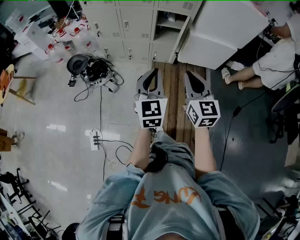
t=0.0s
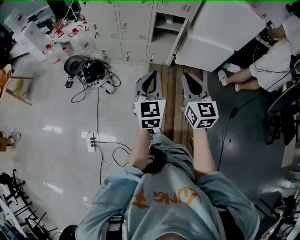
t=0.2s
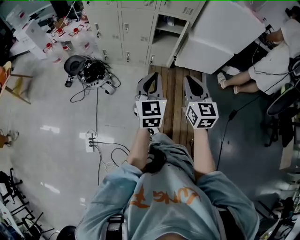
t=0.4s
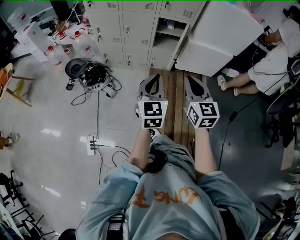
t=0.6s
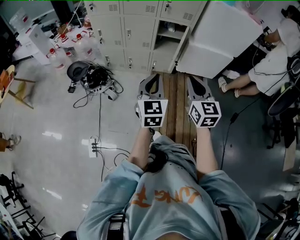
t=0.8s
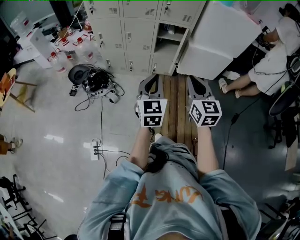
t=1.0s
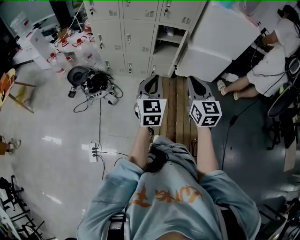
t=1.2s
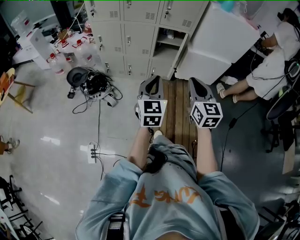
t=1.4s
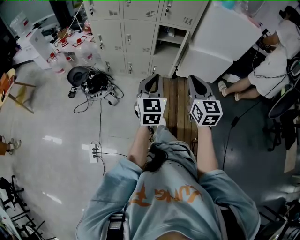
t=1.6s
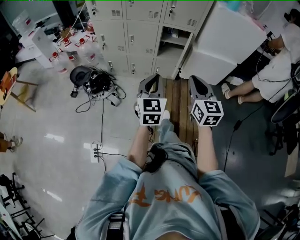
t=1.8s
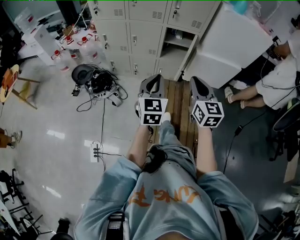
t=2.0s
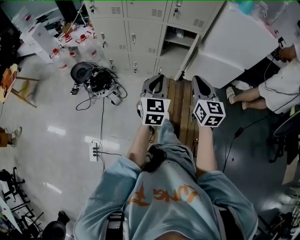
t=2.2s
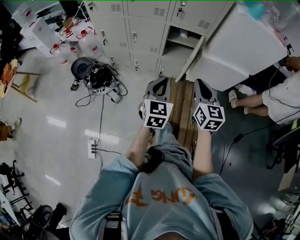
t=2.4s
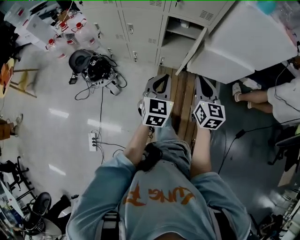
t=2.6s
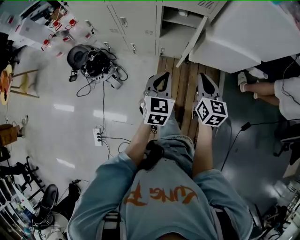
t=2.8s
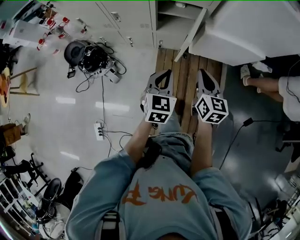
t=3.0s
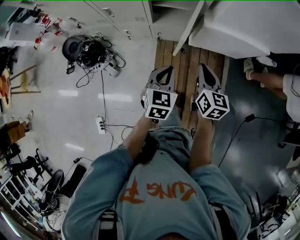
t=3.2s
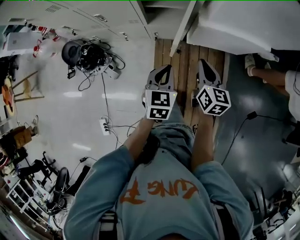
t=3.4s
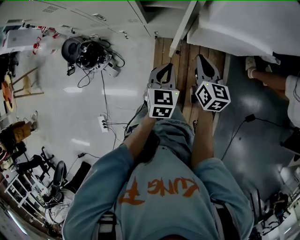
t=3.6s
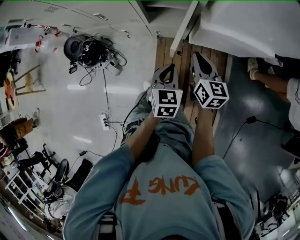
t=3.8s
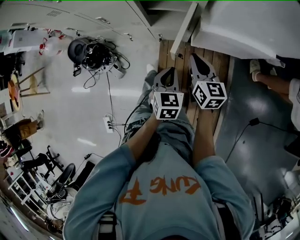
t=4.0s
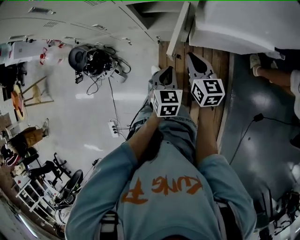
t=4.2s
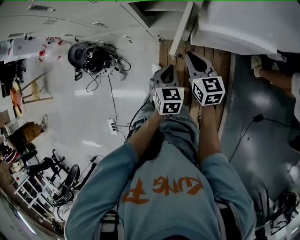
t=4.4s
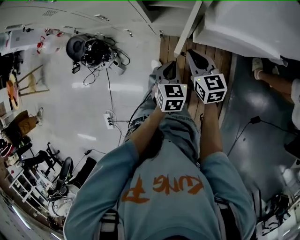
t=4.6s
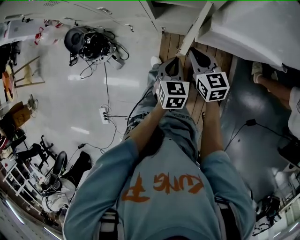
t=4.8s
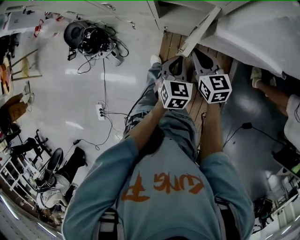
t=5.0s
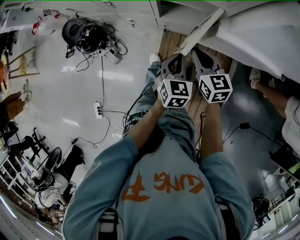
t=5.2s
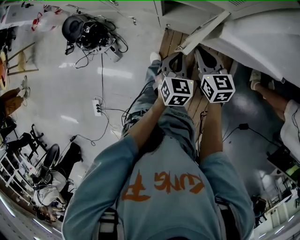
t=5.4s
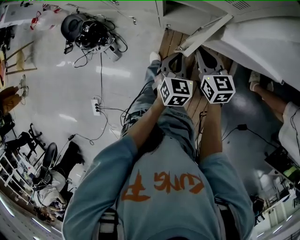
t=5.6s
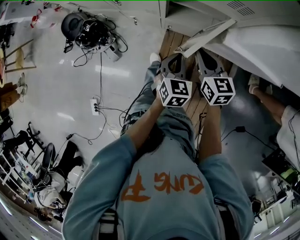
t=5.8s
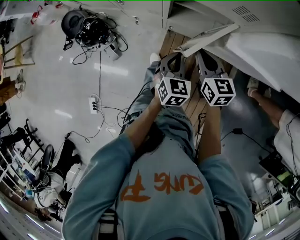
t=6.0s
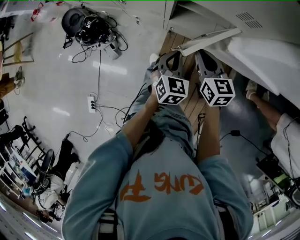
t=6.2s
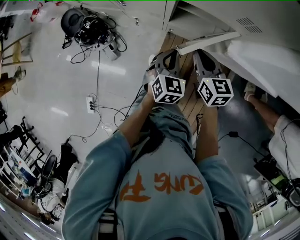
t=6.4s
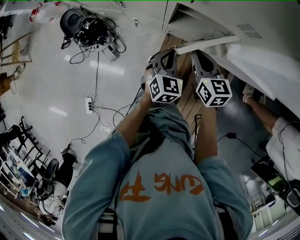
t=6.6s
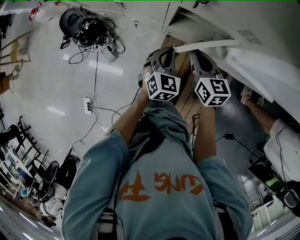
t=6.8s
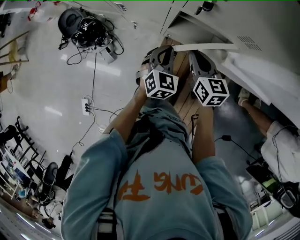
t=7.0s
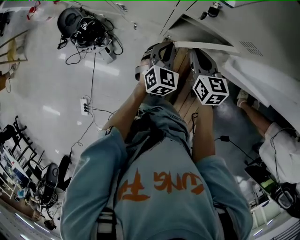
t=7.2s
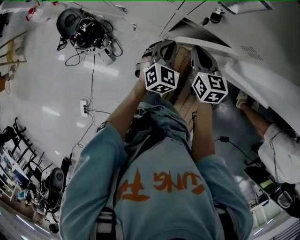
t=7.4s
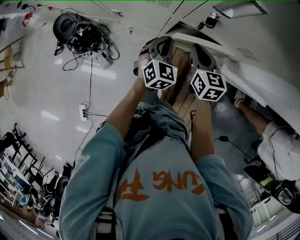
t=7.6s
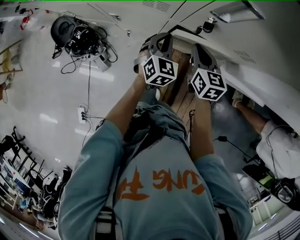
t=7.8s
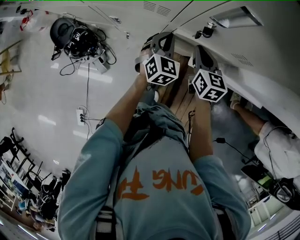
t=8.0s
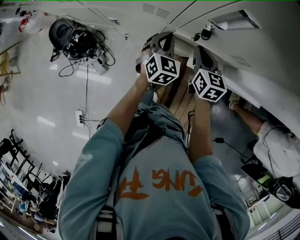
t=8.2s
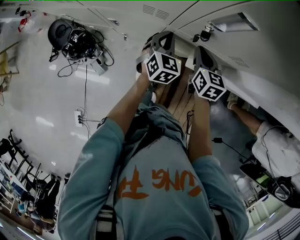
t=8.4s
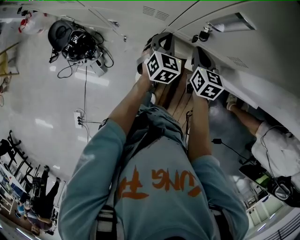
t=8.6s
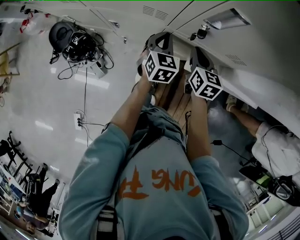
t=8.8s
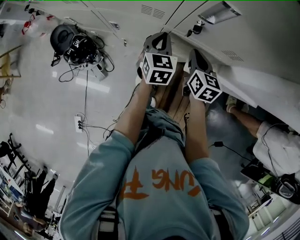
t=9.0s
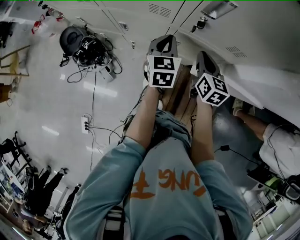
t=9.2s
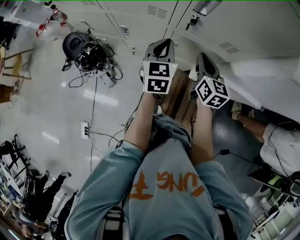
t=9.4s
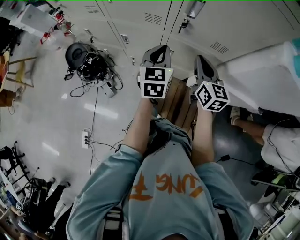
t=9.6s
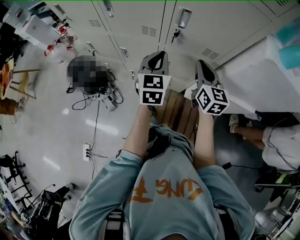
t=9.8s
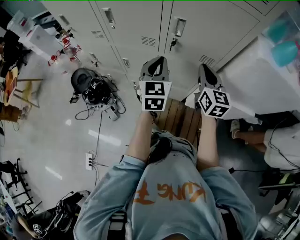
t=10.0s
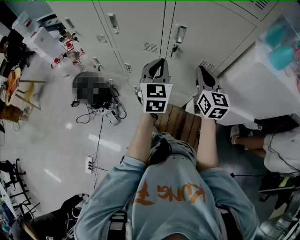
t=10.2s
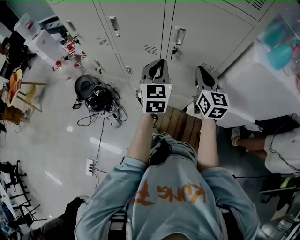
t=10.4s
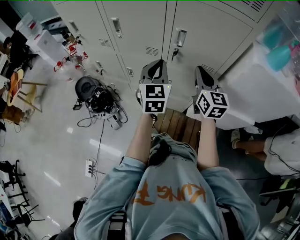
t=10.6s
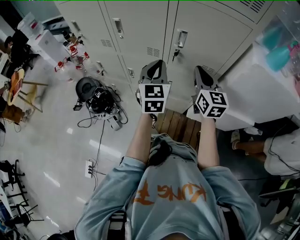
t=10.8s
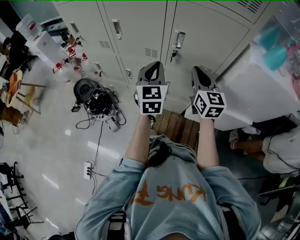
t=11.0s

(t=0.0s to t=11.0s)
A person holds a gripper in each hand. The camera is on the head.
t=0.0s - t=1.6s: The grippers make only small movements.
t=1.6s - t=3.2s: The two grippers go approximately 40 cm forward, downward and to the right. The left gripper rotates roughly 30 degrees; the right gripper rotates some 30 degrees.
t=3.2s - t=4.8s: Both grippers move forward and downward, some 15 cm. The right gripper swivels approximately 30 degrees.
t=4.8s - t=6.2s: The right gripper heads forward, covering roughly 5 cm; the left gripper heads forward and to the left, covering some 10 cm.
t=6.2s - t=7.8s: The two grippers go approximately 15 cm forward.
t=7.8s - t=9.4s: The two grippers go approximately 10 cm upward. The left gripper swivels some 30 degrees.
t=9.4s - t=11.0s: The right gripper travels upward by about 15 cm, and rotates some 20 degrees. Meanwhile the left gripper is displaced upward and backward by approximately 15 cm.

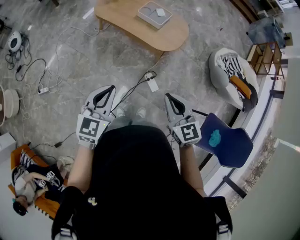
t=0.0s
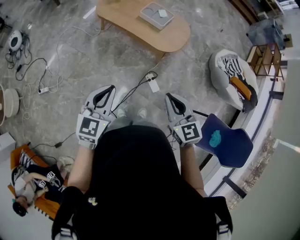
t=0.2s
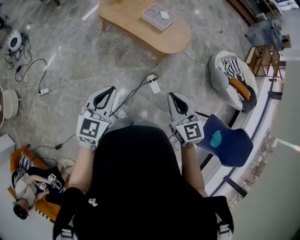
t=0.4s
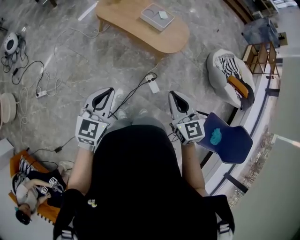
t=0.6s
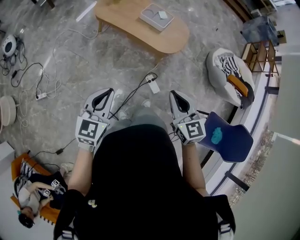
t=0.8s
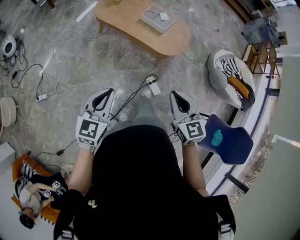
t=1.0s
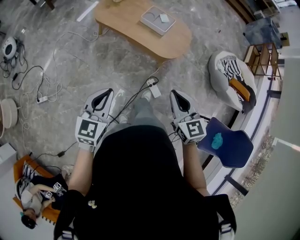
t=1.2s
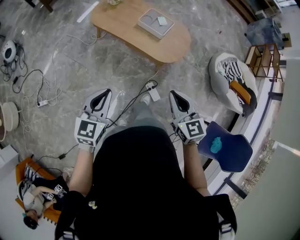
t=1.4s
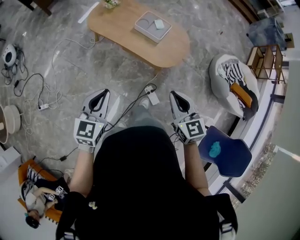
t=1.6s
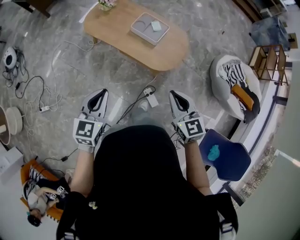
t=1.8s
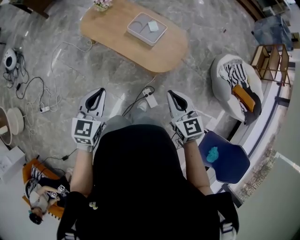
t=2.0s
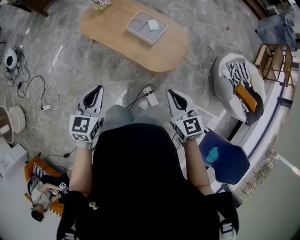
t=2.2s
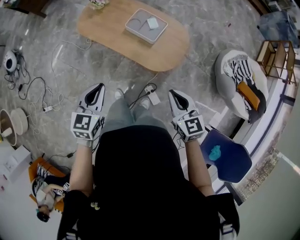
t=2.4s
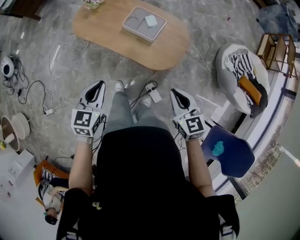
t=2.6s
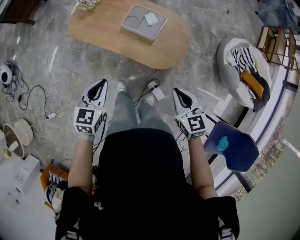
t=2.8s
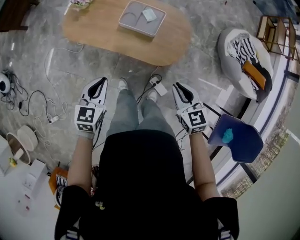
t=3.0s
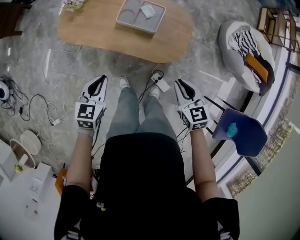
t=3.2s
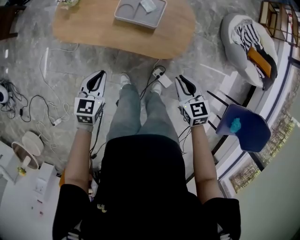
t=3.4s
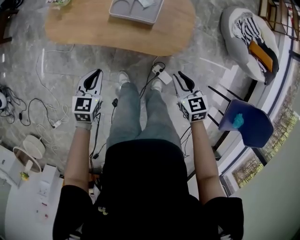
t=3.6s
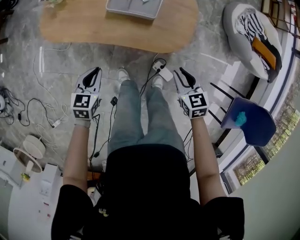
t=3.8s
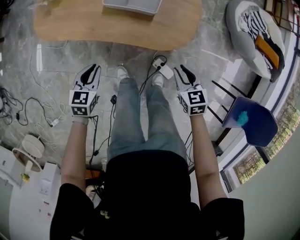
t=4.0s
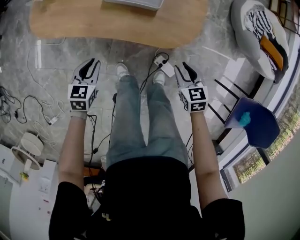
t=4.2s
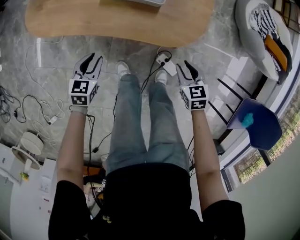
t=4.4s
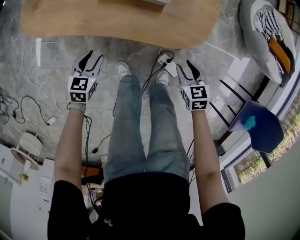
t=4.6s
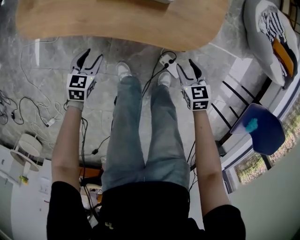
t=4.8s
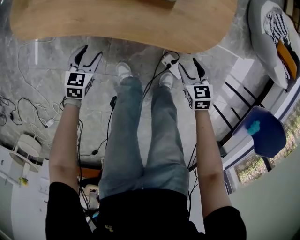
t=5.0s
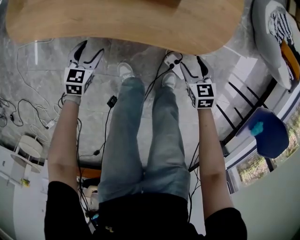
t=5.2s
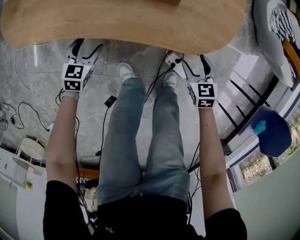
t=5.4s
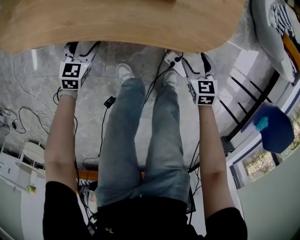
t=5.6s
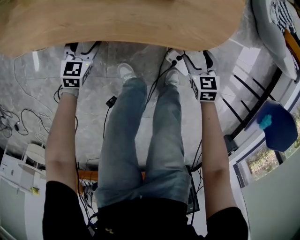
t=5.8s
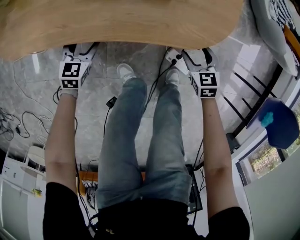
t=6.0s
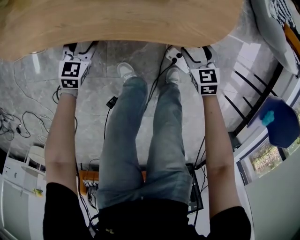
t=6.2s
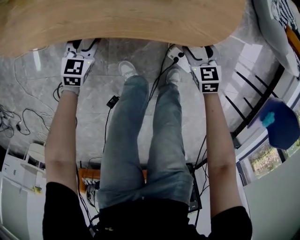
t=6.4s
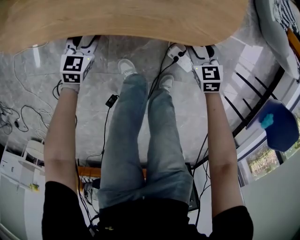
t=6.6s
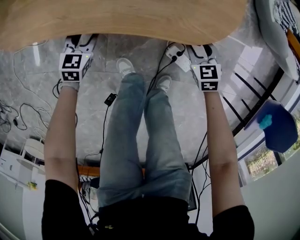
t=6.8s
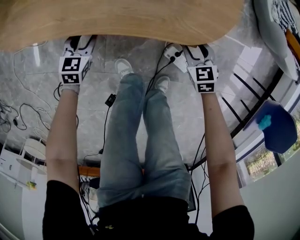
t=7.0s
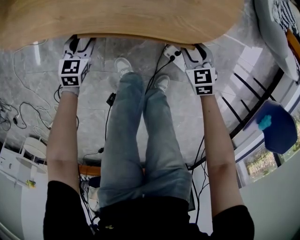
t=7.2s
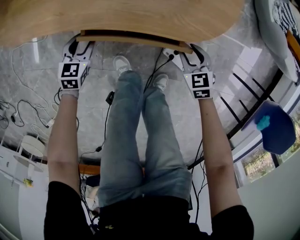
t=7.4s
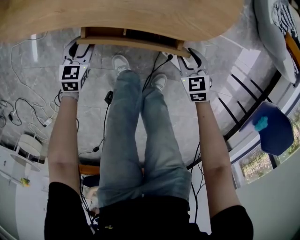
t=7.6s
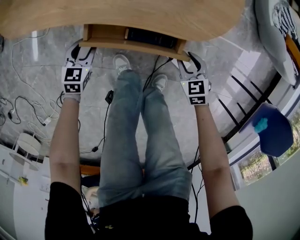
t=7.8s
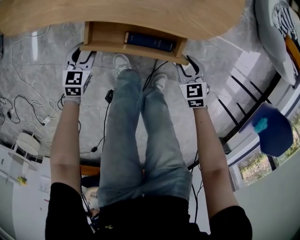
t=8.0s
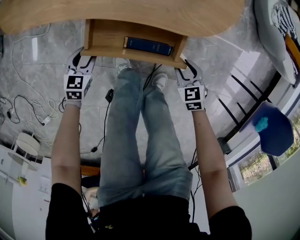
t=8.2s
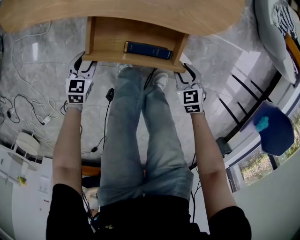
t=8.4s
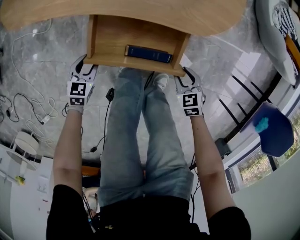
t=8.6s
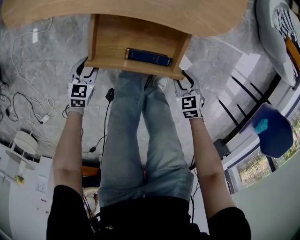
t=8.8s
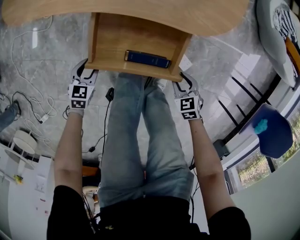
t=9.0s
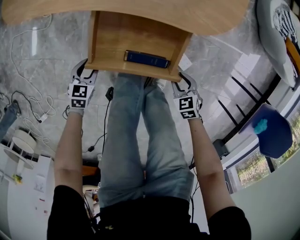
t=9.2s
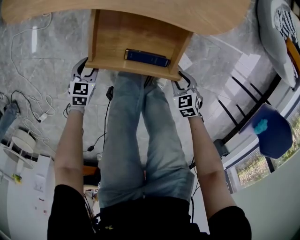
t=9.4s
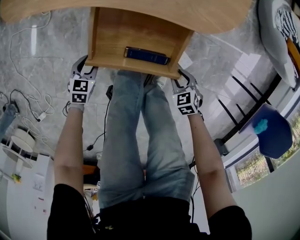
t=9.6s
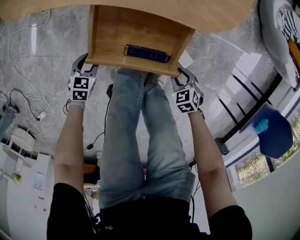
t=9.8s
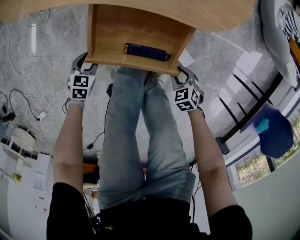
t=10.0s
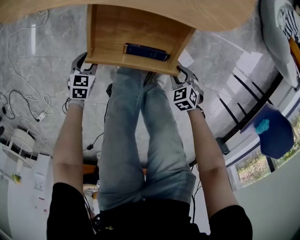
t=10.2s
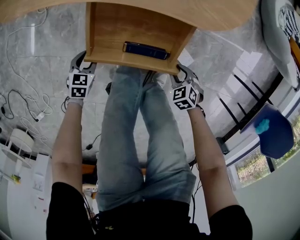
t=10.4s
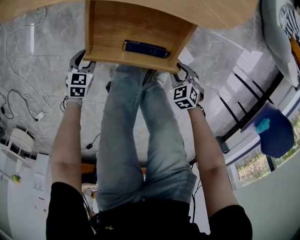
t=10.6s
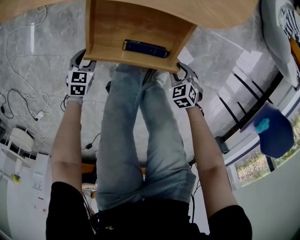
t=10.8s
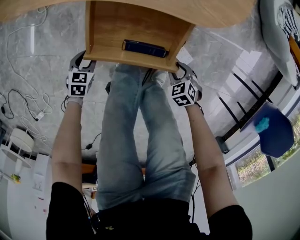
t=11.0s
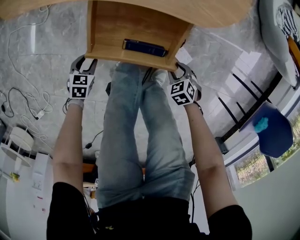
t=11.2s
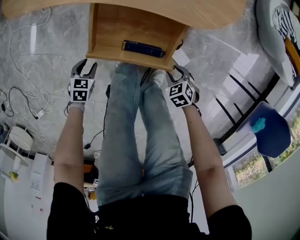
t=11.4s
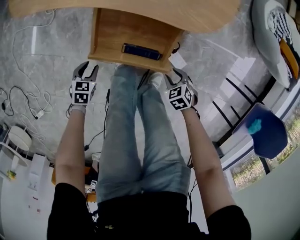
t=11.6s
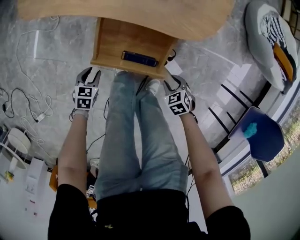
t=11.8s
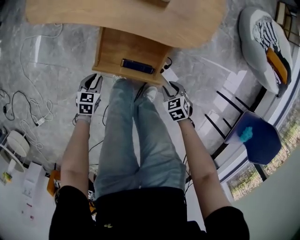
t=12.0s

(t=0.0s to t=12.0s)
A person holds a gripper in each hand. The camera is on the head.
t=0.0s - t=1.6s: Both grippers move forward, some 20 cm.
t=1.6s - t=3.0s: The grippers both shift forward and downward by approximately 30 cm.
t=3.0s - t=4.4s: Both grippers travel together downward, approximately 35 cm. The right gripper swivels about 20 degrees.
t=4.4s - t=6.0s: Both grippers move downward, some 20 cm. The left gripper opens. The right gripper opens its fingers.
t=6.0s - t=7.6s: The right gripper changes place by approximately 5 cm, and closes its fingers. The left gripper moves backward, approximately 5 cm, and closes up.
t=7.6s - t=9.0s: Both grippers move backward, approximately 15 cm.
t=9.0s - t=10.4s: The two grippers go roughly 5 cm downward.
t=10.4s - t=12.0s: Both grippers move upward, some 15 cm.

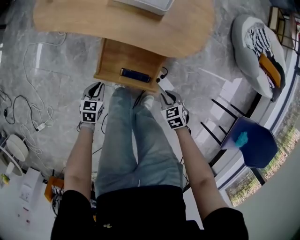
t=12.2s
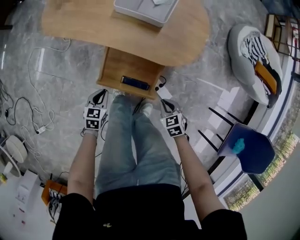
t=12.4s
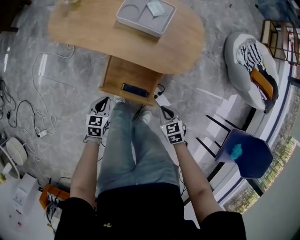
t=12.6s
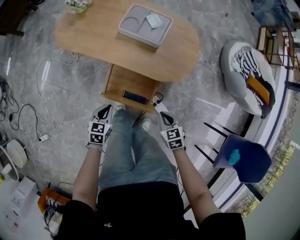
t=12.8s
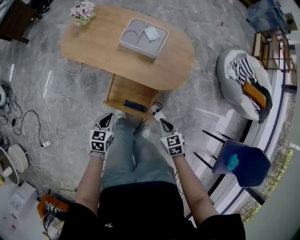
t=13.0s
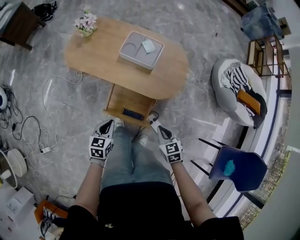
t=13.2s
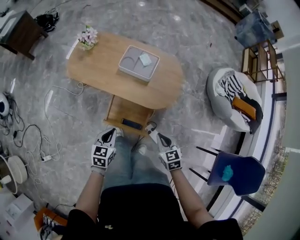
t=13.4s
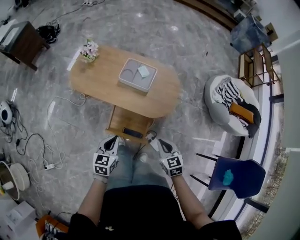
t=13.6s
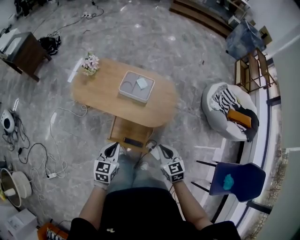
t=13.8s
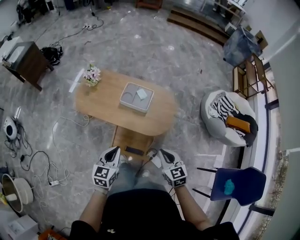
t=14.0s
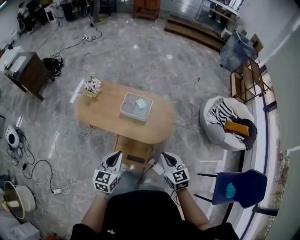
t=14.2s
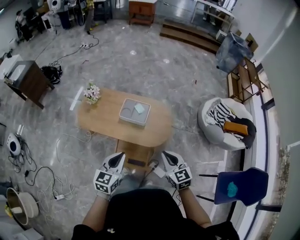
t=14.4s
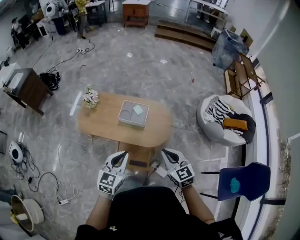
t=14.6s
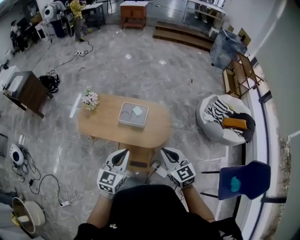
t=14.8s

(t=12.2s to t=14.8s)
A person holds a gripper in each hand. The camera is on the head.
t=12.2s - t=13.4s: Both grippers travel together upward, roughly 30 cm. The right gripper turns by about 30 degrees.
t=13.4s - t=14.8s: The grippers both shift upward by roughly 35 cm. The left gripper turns by roughly 30 degrees. The right gripper turns by approximately 20 degrees.
